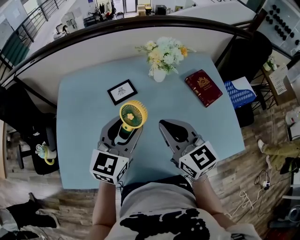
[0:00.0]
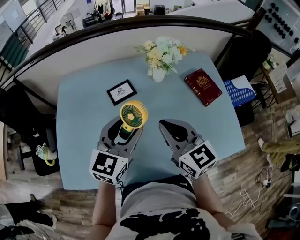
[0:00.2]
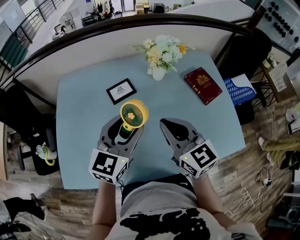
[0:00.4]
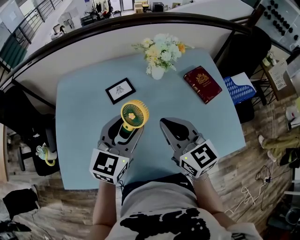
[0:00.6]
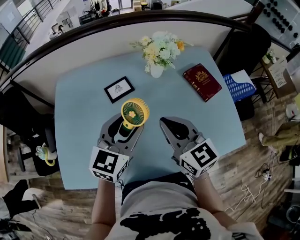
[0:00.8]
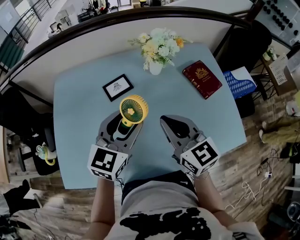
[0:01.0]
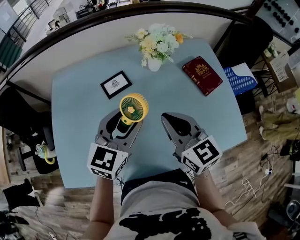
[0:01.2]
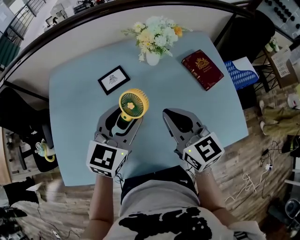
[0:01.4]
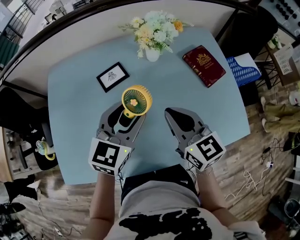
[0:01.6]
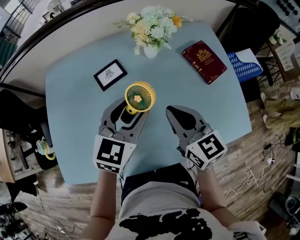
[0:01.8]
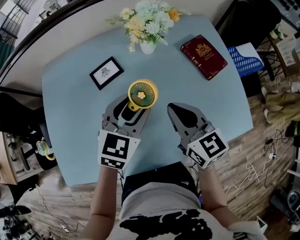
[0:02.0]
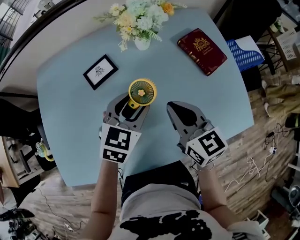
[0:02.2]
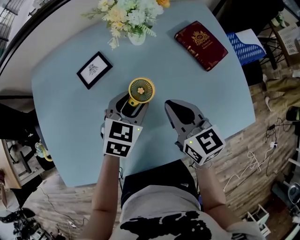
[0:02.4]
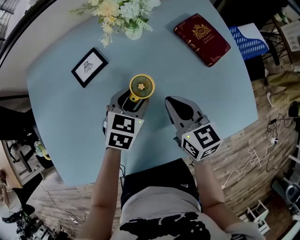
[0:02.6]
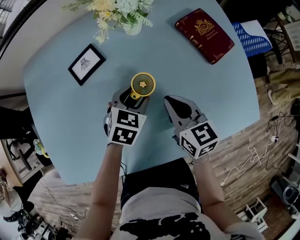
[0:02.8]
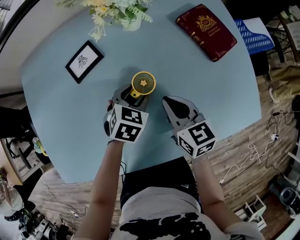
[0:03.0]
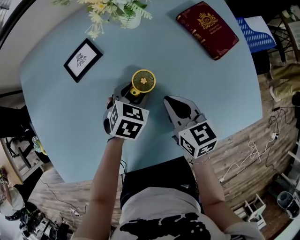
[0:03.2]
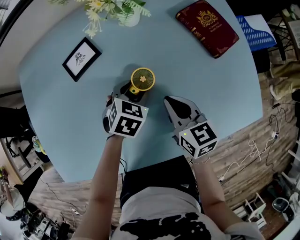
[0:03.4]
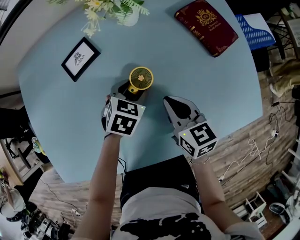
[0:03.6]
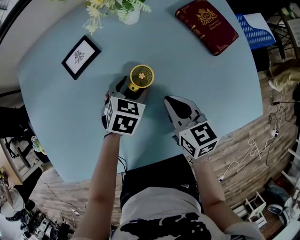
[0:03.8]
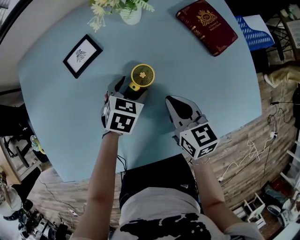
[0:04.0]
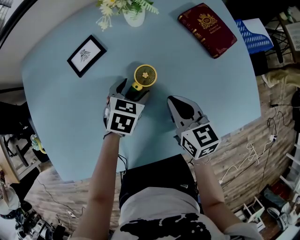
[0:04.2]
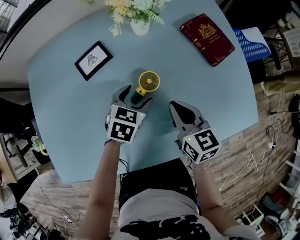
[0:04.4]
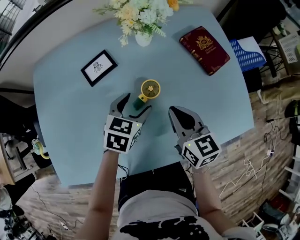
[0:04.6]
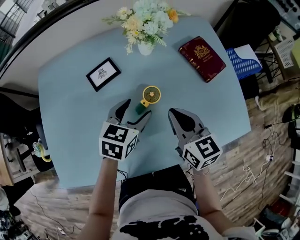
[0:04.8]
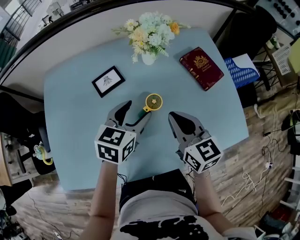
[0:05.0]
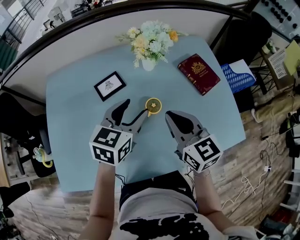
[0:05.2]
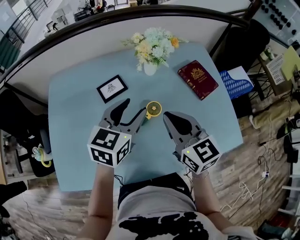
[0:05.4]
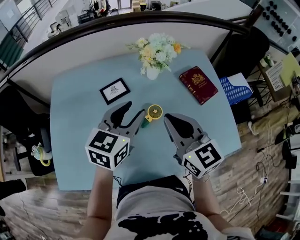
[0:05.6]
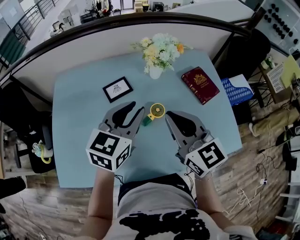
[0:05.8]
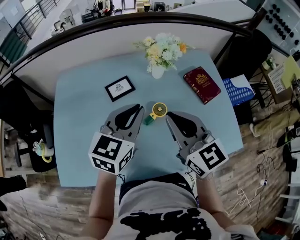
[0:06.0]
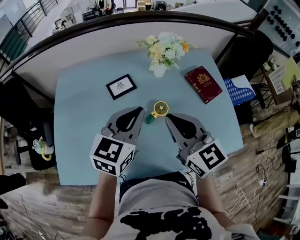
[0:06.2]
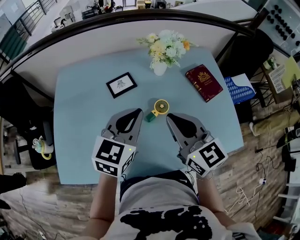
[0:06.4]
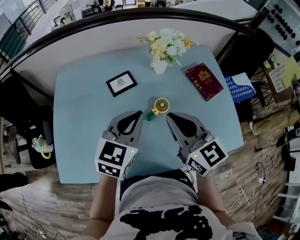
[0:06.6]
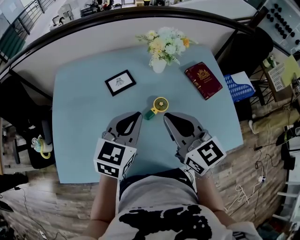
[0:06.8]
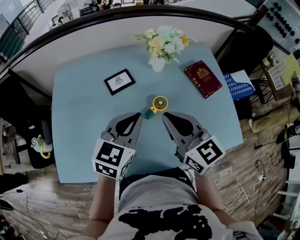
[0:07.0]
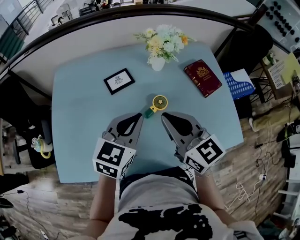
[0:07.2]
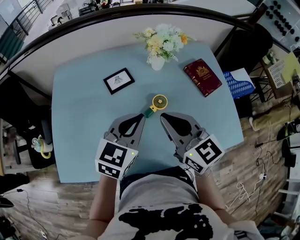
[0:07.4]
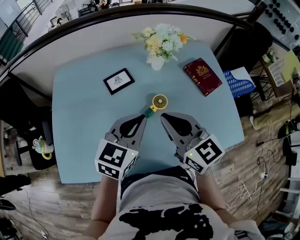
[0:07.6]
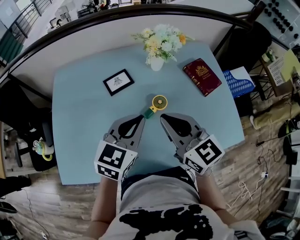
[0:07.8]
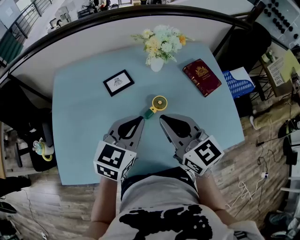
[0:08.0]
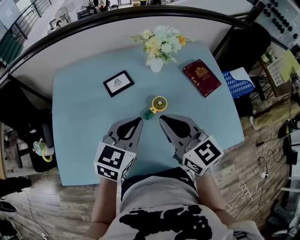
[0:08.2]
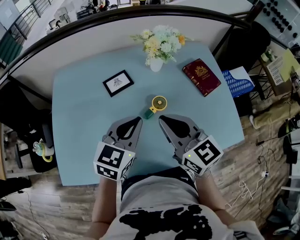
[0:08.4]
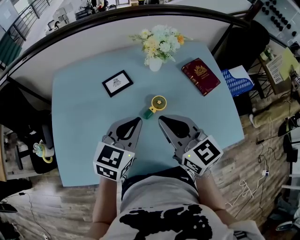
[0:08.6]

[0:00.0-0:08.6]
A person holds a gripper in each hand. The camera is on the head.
0:00.0 to 0:01.4: The right gripper changes place by approximately 5 cm.
0:01.4 to 0:02.8: Both grippers move downward, some 20 cm. The right gripper swivels roughly 20 degrees. Meanwhile the left gripper points its fingers approximately 30 degrees further downward.
0:02.8 to 0:04.4: The grippers move only a little.
0:04.4 to 0:05.8: The two grippers go about 25 cm upward. The left gripper angles its fingers upward, by approximately 30 degrees, and closes its fingers; the right gripper swivels approximately 30 degrees.
0:05.8 to 0:07.2: The left gripper moves approximately 5 cm.
0:07.2 to 0:08.6: The two grippers keep their place.

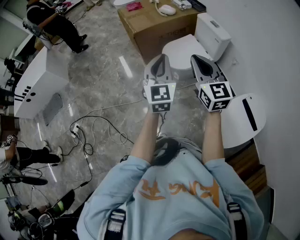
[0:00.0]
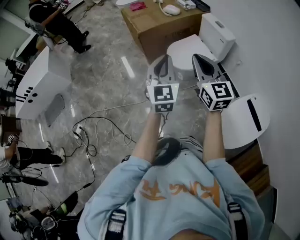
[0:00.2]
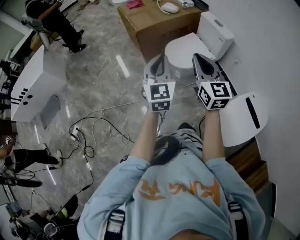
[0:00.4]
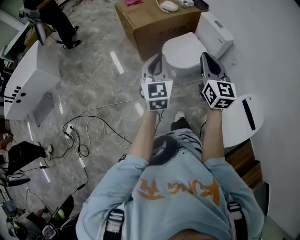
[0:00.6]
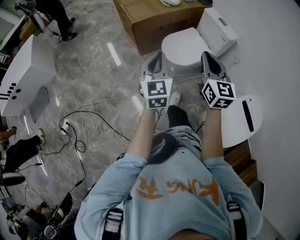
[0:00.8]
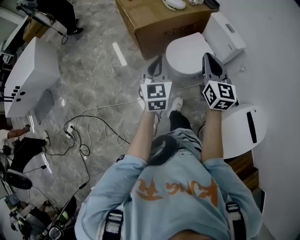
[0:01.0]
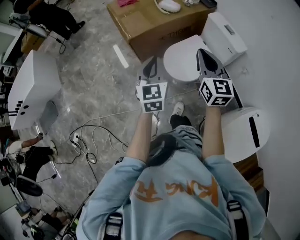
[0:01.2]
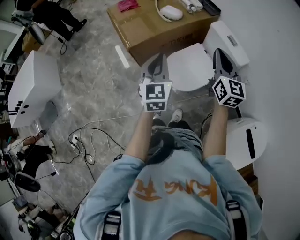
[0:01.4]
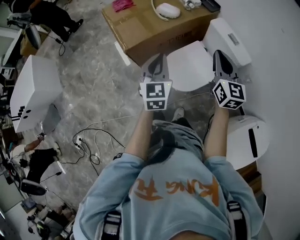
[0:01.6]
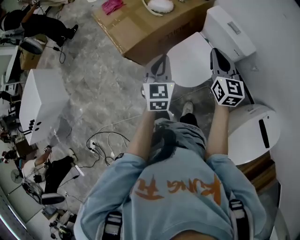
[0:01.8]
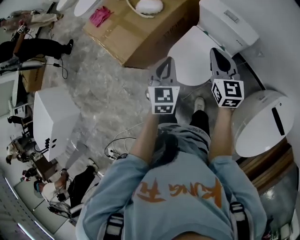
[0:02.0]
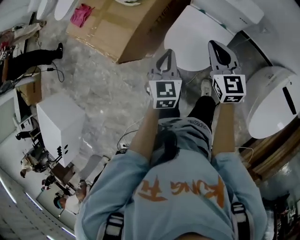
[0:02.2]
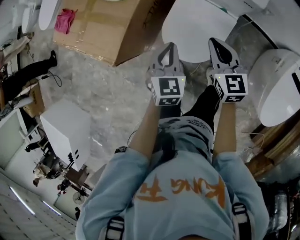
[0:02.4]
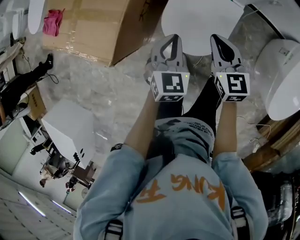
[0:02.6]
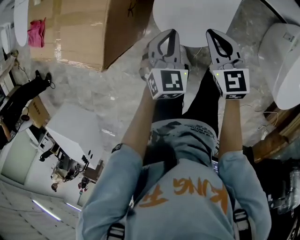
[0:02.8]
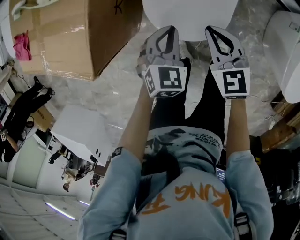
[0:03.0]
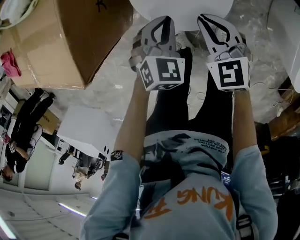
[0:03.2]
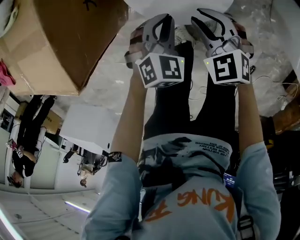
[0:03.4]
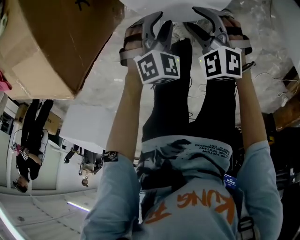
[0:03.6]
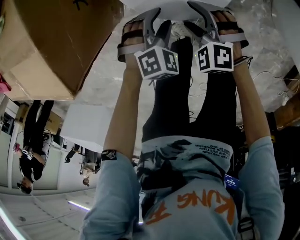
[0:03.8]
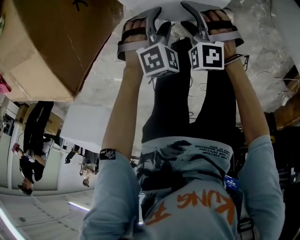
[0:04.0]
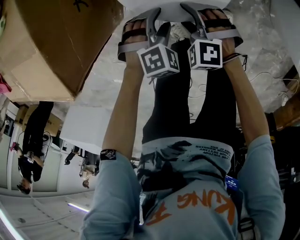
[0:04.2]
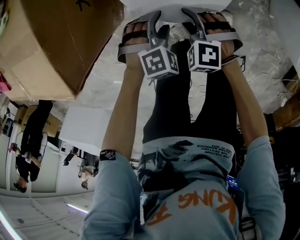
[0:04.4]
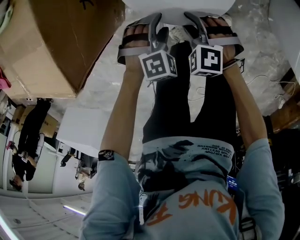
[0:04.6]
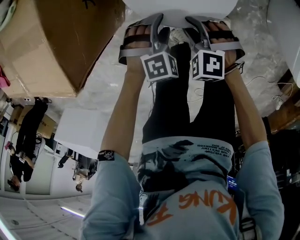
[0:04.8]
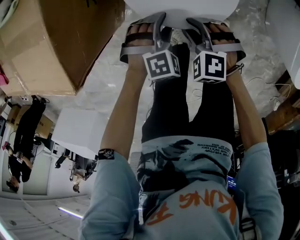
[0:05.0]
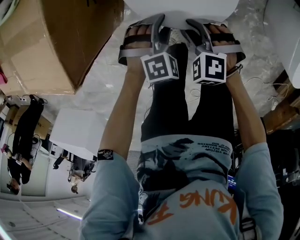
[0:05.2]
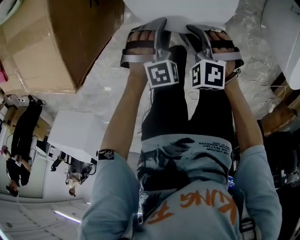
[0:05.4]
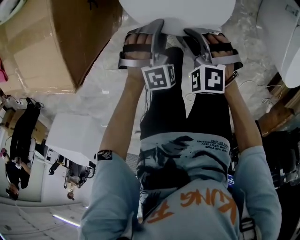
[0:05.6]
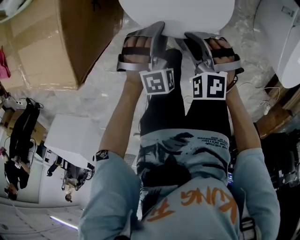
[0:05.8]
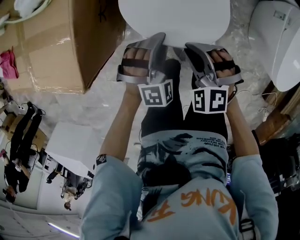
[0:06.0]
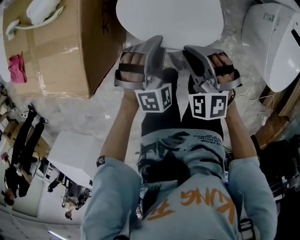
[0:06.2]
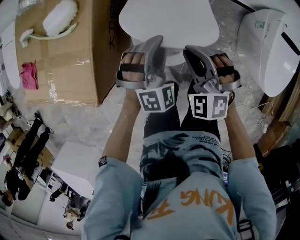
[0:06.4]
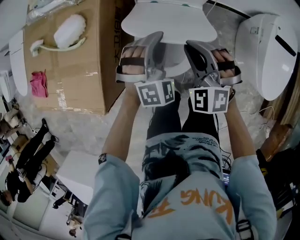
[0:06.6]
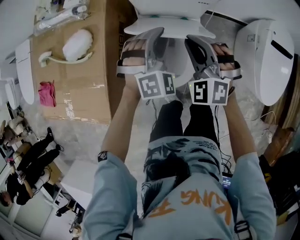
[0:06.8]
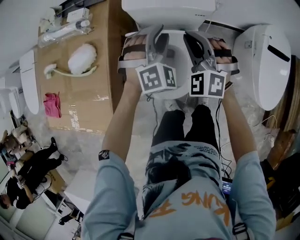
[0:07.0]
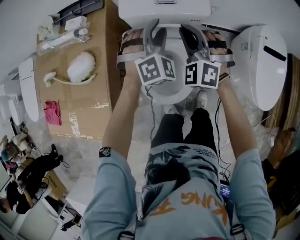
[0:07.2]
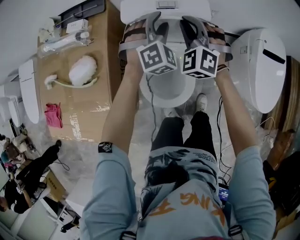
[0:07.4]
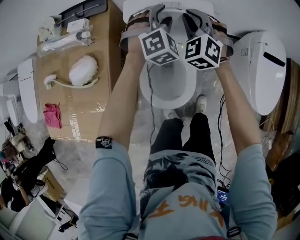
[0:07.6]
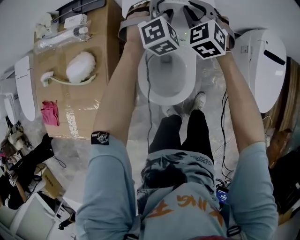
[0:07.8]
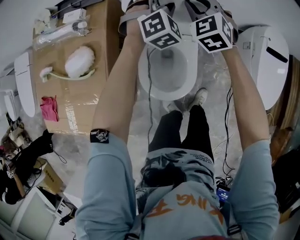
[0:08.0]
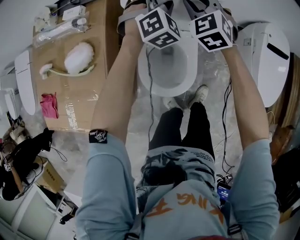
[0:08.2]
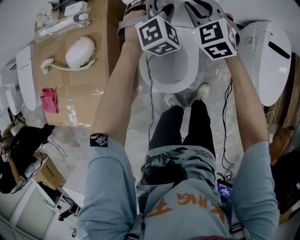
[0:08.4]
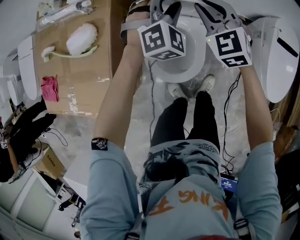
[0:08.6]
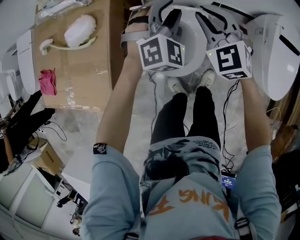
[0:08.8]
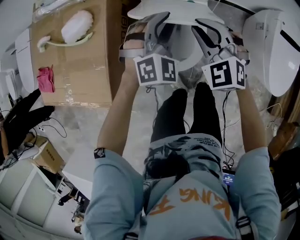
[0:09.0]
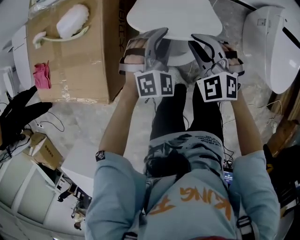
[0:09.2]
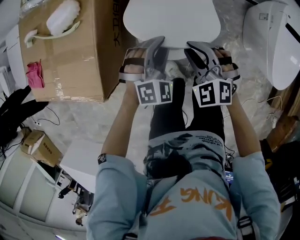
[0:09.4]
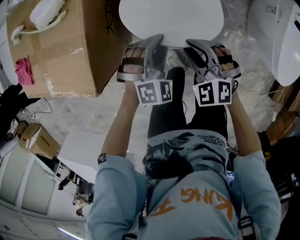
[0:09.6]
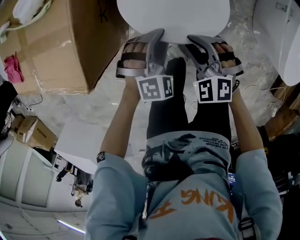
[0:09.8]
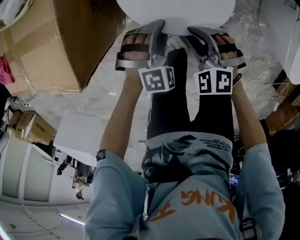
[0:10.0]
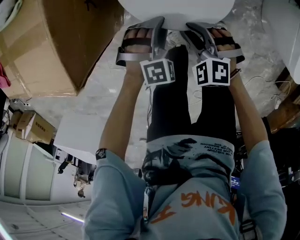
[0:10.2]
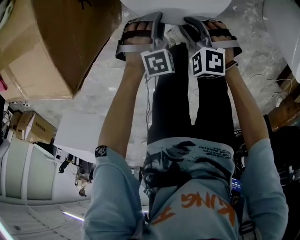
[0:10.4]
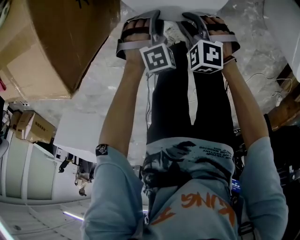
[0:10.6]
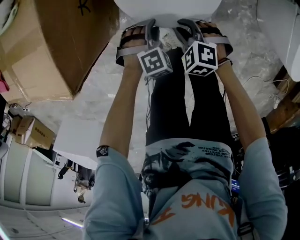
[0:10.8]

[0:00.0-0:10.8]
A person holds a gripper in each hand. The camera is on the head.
0:00.0 to 0:01.6: The two grippers travel together, forward, some 40 cm.
0:01.6 to 0:03.0: Both grippers travel together downward, roughly 40 cm. The right gripper angles its fingers downward, by some 30 degrees, while the left gripper points its fingers approximately 30 degrees further downward.
0:03.0 to 0:04.6: Both grippers move downward and backward, roughly 20 cm. The right gripper swivels roughly 50 degrees, and opens up, while the left gripper rolls clockwise, seen from behind, by roughly 50 degrees, and opens its fingers.
0:04.6 to 0:06.2: The two grippers go approximately 25 cm upward. The left gripper angles its fingers upward, by roughly 30 degrees, and closes up. The right gripper closes its fingers.
0:06.2 to 0:07.8: The two grippers go roughly 40 cm forward. The right gripper changes its angle by roughly 30 degrees. The left gripper opens.
0:07.8 to 0:09.2: Both grippers travel together backward, about 30 cm. The left gripper closes its fingers. The right gripper turns by about 20 degrees.
0:09.2 to 0:10.8: The two grippers go some 35 cm downward and backward. The right gripper swivels some 30 degrees. The left gripper points its fingers about 30 degrees further downward.

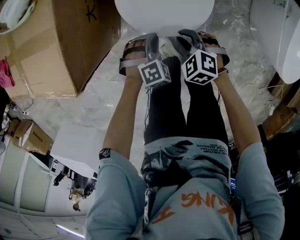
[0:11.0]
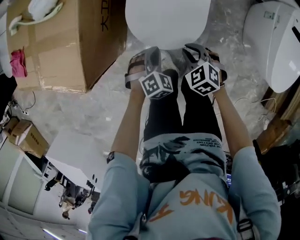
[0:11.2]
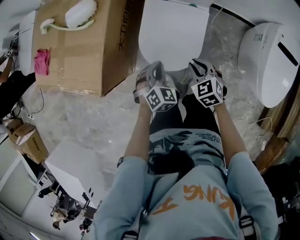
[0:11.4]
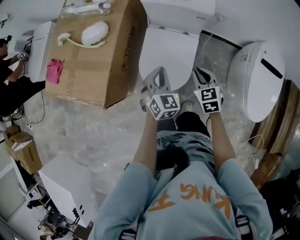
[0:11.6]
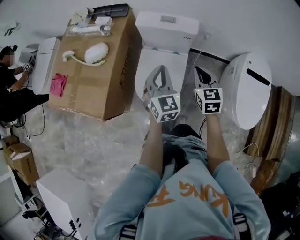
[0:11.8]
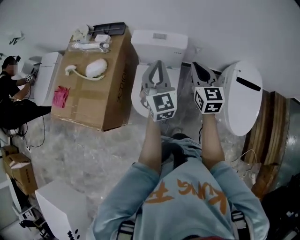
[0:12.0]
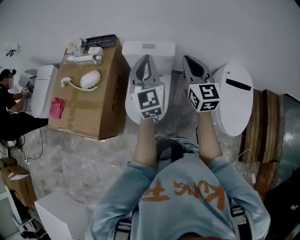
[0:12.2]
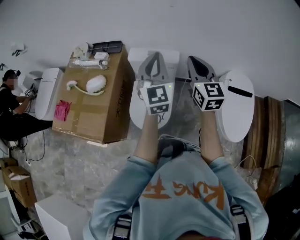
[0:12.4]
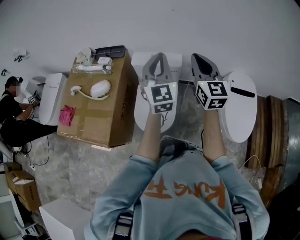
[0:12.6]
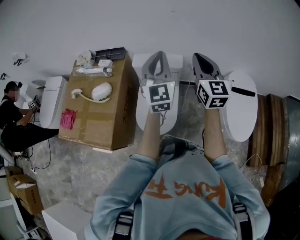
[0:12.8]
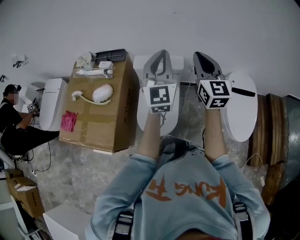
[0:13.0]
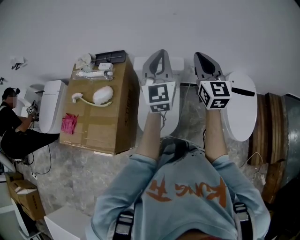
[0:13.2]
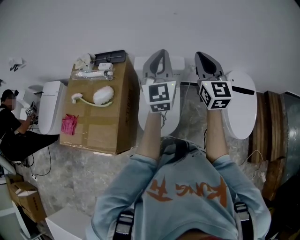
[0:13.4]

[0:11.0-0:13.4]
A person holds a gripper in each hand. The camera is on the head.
0:11.0 to 0:12.2: The grippers both shift upward by some 70 cm. The right gripper angles its fingers upward, by about 60 degrees; the left gripper tips its fingers upward by approximately 70 degrees.
0:12.2 to 0:13.4: The left gripper moves upward and forward, some 10 cm. The right gripper shifts about 10 cm upward.

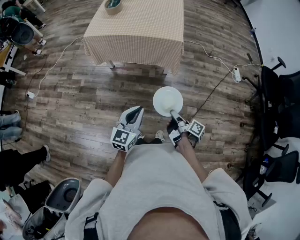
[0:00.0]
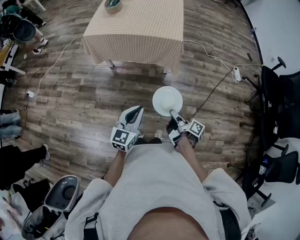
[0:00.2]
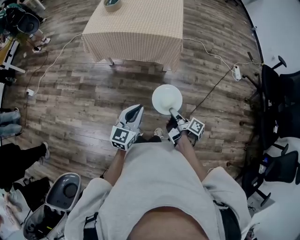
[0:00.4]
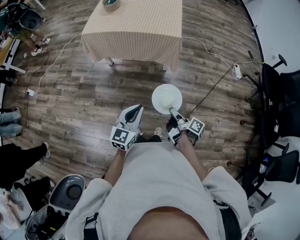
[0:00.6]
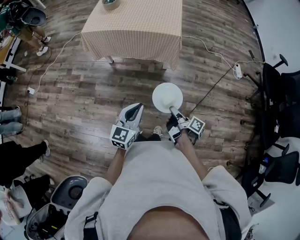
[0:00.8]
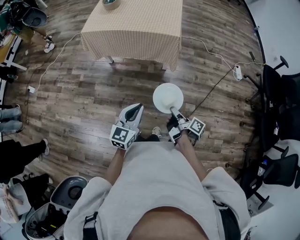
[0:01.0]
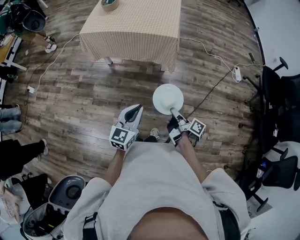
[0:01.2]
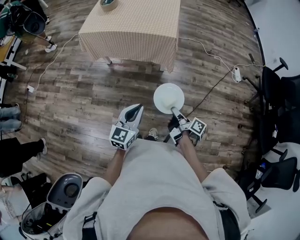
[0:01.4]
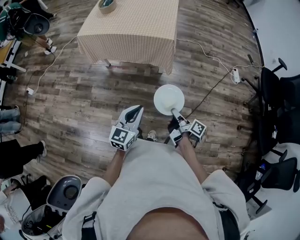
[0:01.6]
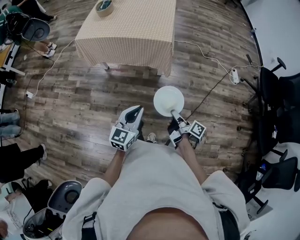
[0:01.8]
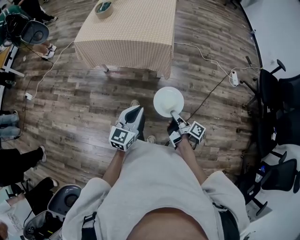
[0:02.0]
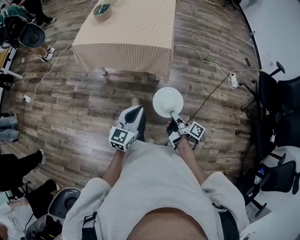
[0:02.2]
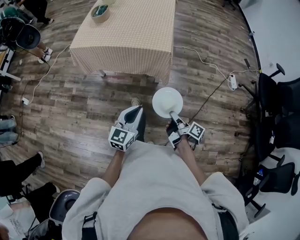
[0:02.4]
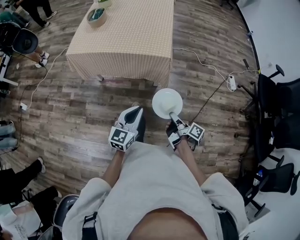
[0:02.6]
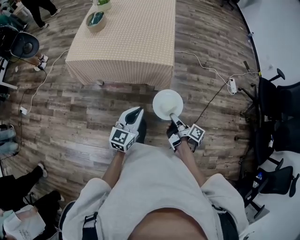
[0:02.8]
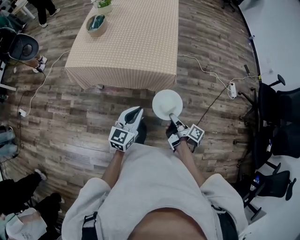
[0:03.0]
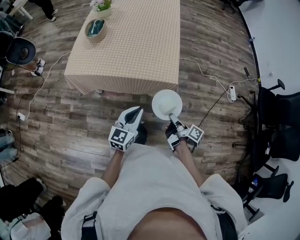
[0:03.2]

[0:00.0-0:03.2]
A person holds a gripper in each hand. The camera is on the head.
0:00.0 to 0:01.6: The left gripper ends up about 10 cm from where it was.
0:01.6 to 0:03.2: The left gripper ends up approximately 35 cm from where it was.
